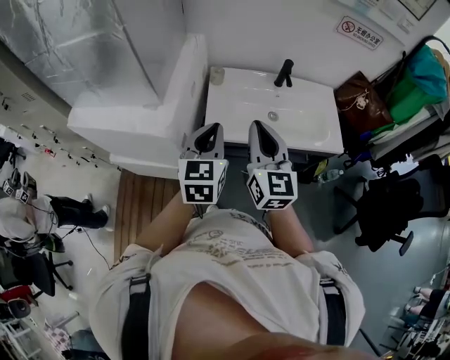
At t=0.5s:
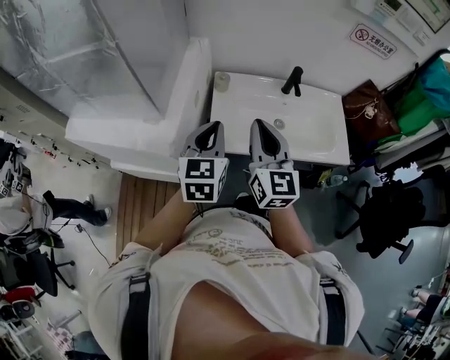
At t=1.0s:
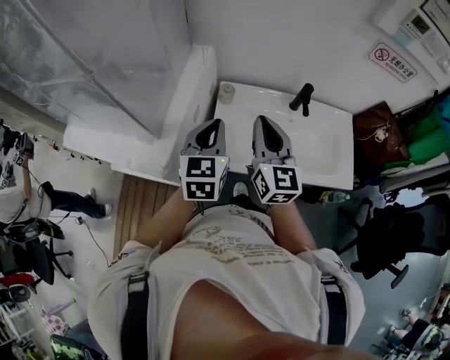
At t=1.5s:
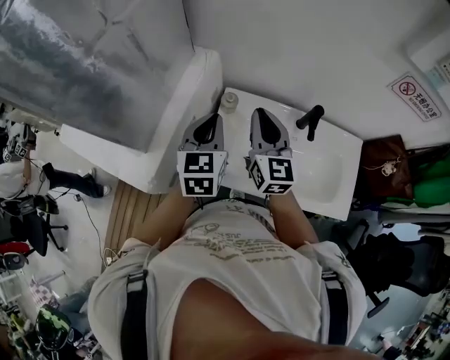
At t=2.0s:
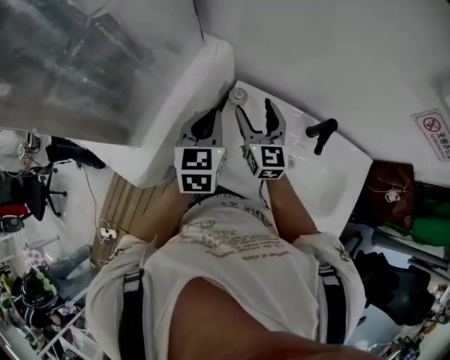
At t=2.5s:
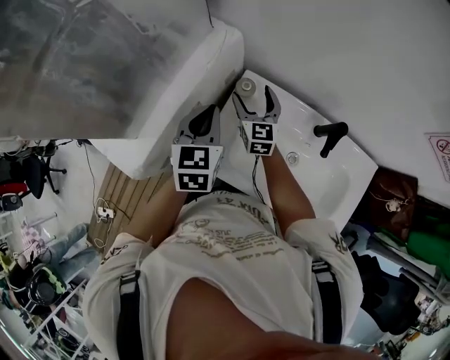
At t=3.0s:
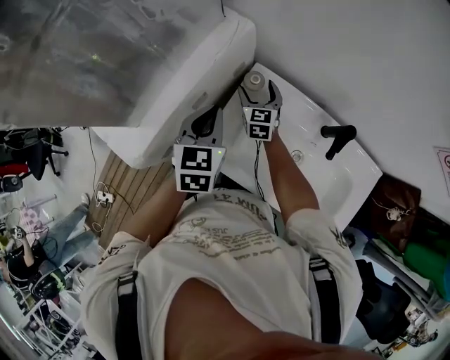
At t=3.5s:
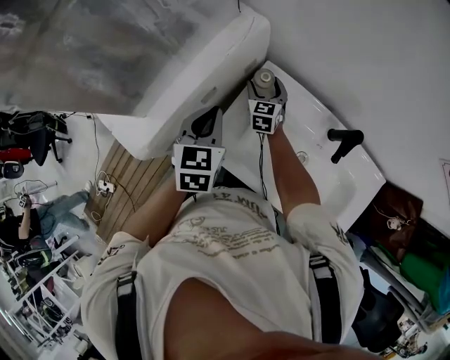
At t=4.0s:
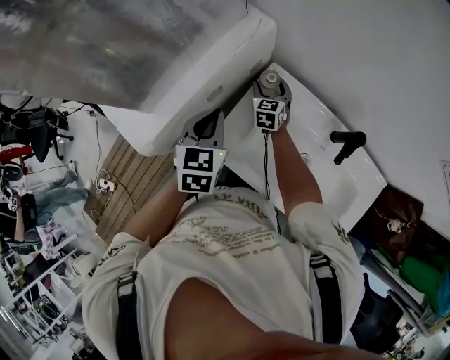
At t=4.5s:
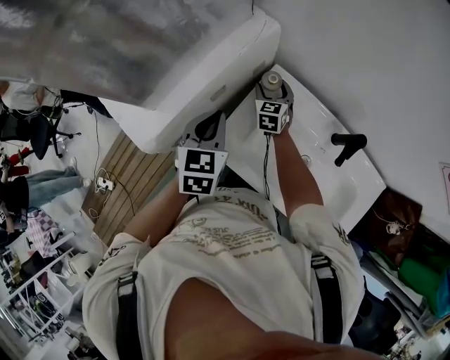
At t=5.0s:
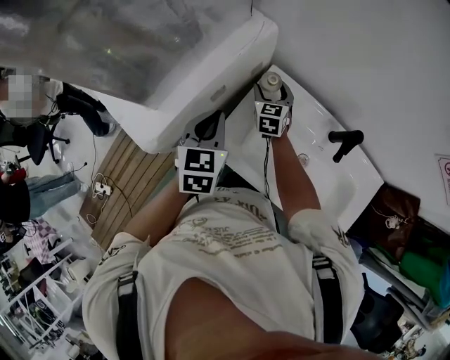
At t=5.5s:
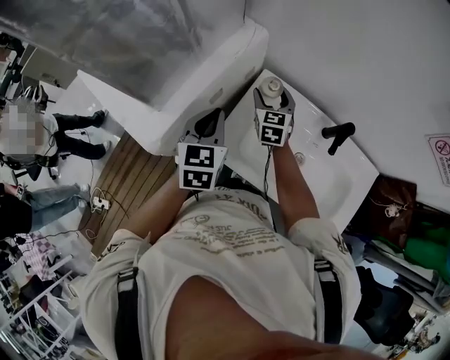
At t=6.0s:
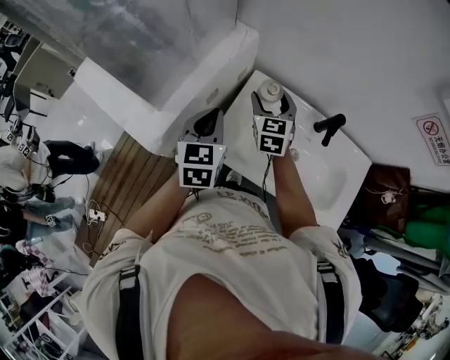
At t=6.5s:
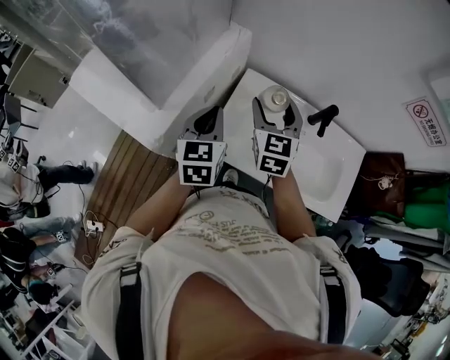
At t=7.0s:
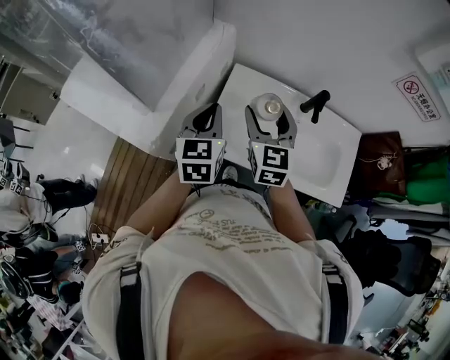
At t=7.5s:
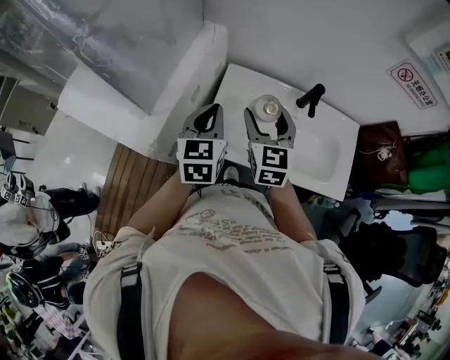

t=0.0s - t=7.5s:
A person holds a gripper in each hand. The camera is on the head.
t=0.0s - t=2.0s: The grippers both shift forward by some 30 cm. The right gripper rotates some 30 degrees, and opens its fingers; the left gripper changes its angle by some 20 degrees.
t=2.0s - t=4.0s: The right gripper heads downward and forward, covering roughly 20 cm, and changes its angle by approximately 30 degrees. The left gripper is displaced downward by about 5 cm.
t=4.0s - t=5.5s: The right gripper shifts roughly 10 cm upward and backward.
t=5.5s - t=7.5s: The left gripper shifts approximately 5 cm to the right. The right gripper heads backward and upward, covering some 20 cm.

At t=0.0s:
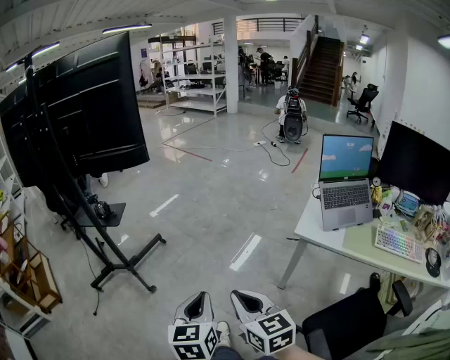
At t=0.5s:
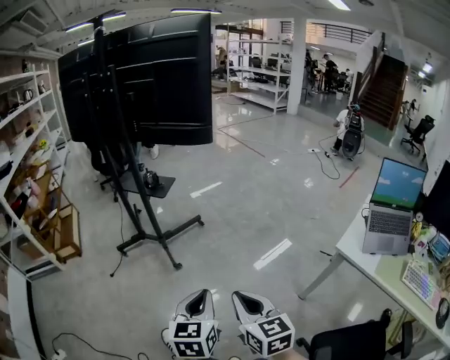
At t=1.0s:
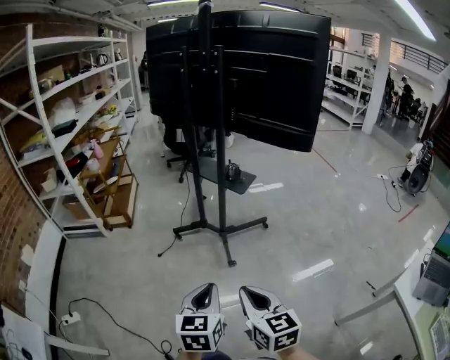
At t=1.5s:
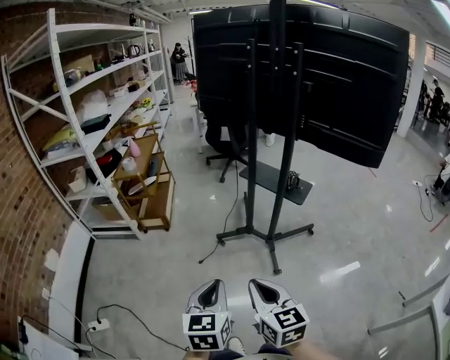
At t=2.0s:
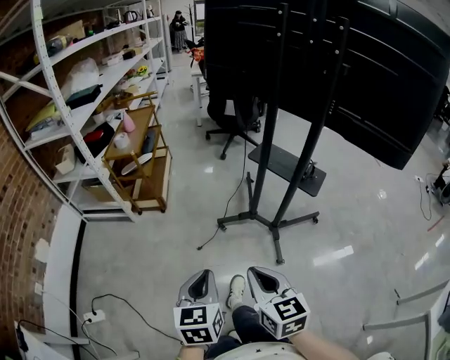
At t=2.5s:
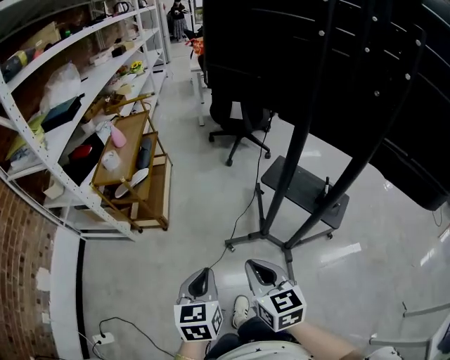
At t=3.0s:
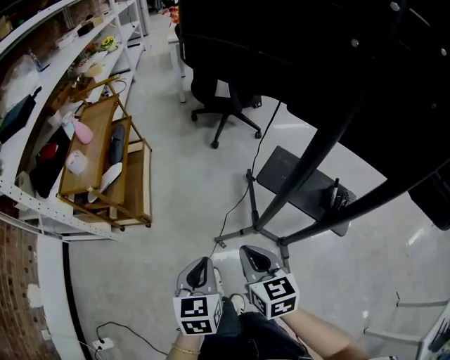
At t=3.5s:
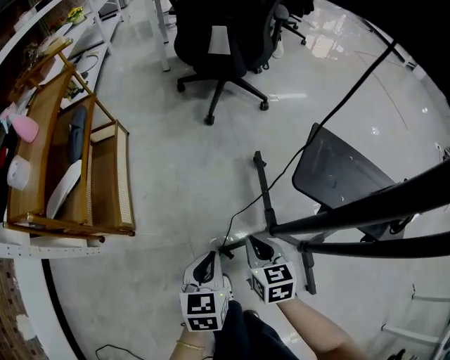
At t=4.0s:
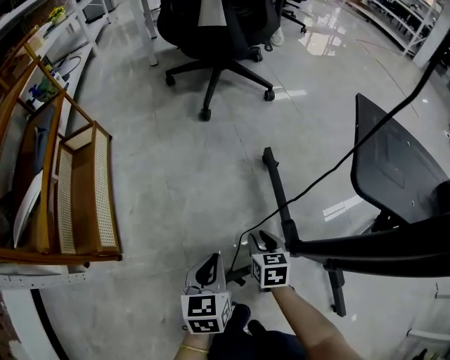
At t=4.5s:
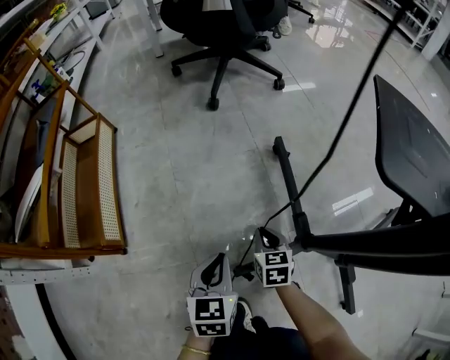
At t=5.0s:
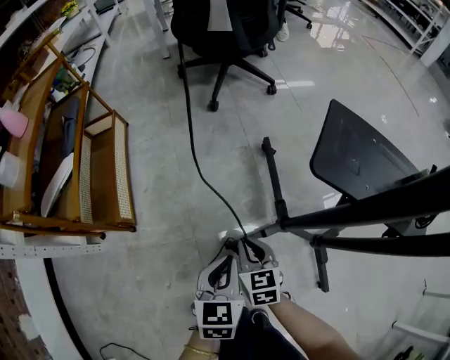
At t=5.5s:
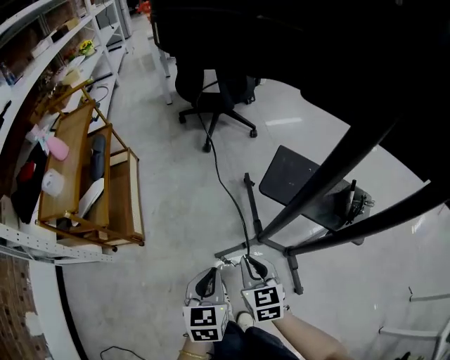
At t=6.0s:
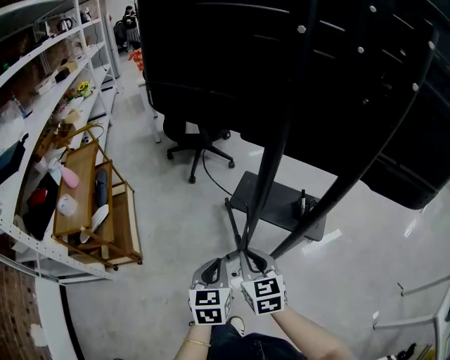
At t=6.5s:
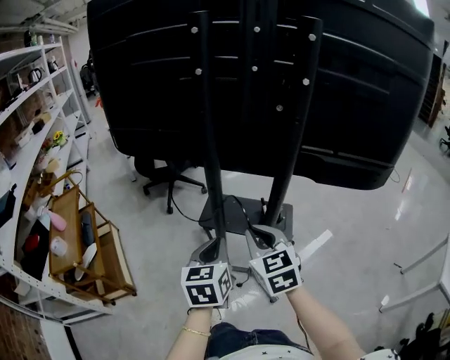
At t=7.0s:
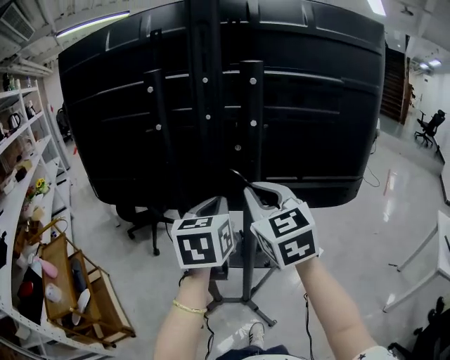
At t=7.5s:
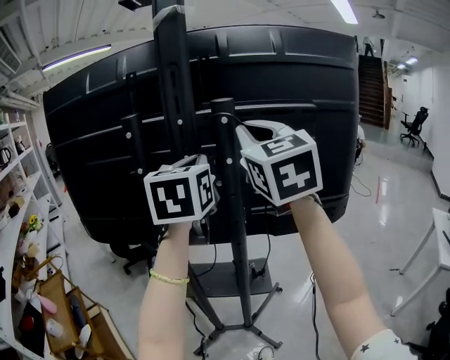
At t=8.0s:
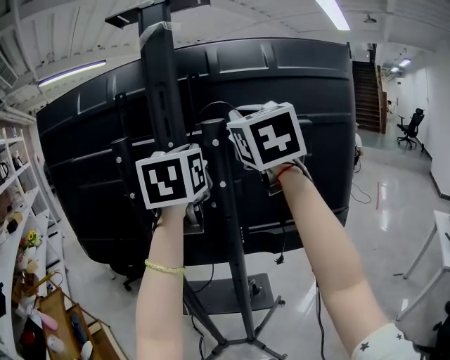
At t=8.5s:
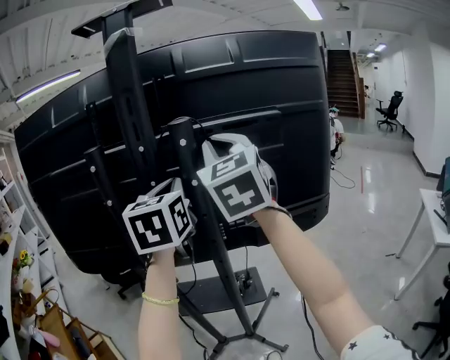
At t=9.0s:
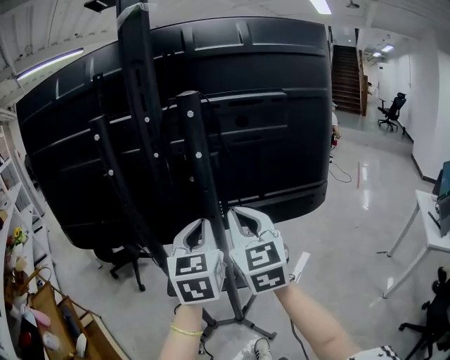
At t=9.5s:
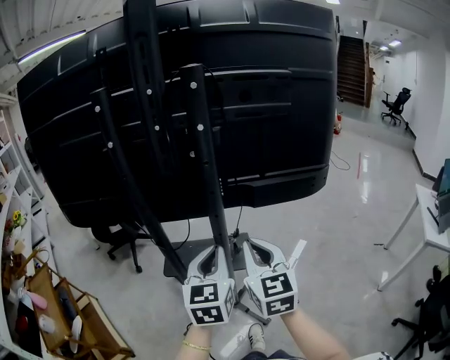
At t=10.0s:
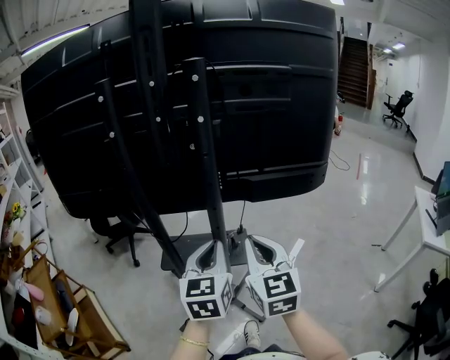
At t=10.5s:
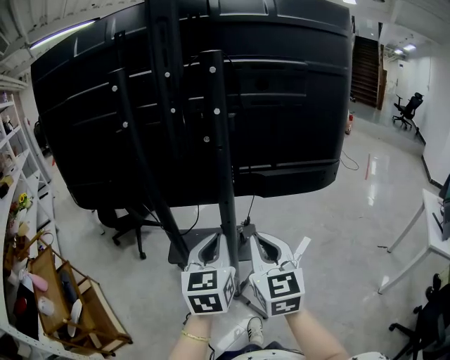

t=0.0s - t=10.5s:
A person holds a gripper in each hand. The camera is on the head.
t=0.0s - t=2.0s: The two grippers travel together, approximately 70 cm. The left gripper rotates approximately 50 degrees, while the right gripper changes its angle by approximately 40 degrees.
t=2.0s - t=4.0s: The two grippers travel together, forward, roughly 70 cm. The two grippers go about 60 cm downward. The right gripper changes its angle by approximately 30 degrees, and opens its fingers.
t=4.0s - t=6.5s: The left gripper is displaced upward and to the right by approximately 70 cm, and swivels approximately 20 degrees; the right gripper moves upward, roughly 70 cm, rotates roughly 30 degrees, and closes up.
t=6.5s - t=8.5s: The right gripper goes approximately 40 cm upward, and angles its fingers upward, by some 30 degrees, while the left gripper moves upward and forward, about 40 cm, and changes its angle by about 30 degrees.
t=8.5s - t=10.5s: Both grippers move downward and backward, about 35 cm.

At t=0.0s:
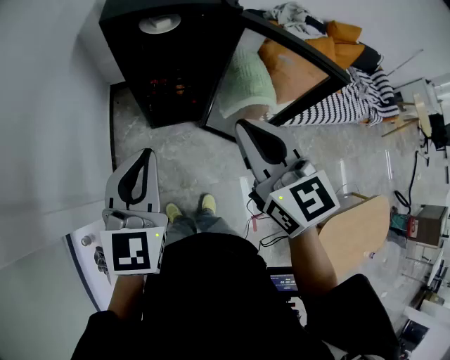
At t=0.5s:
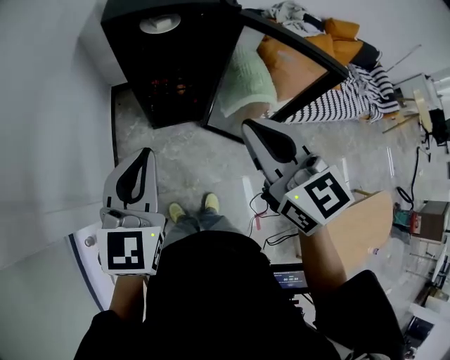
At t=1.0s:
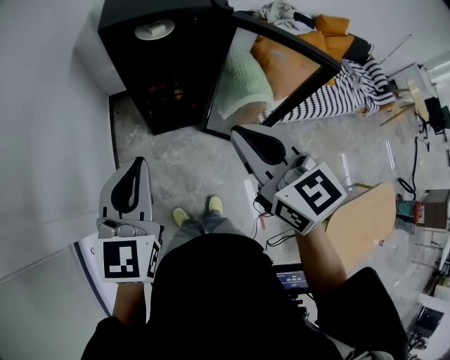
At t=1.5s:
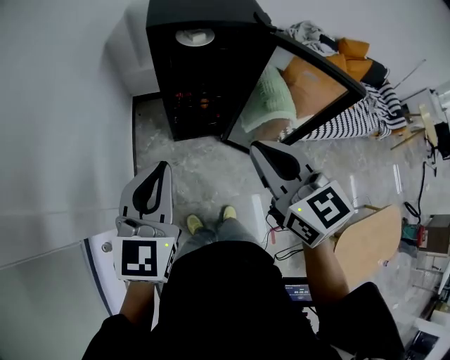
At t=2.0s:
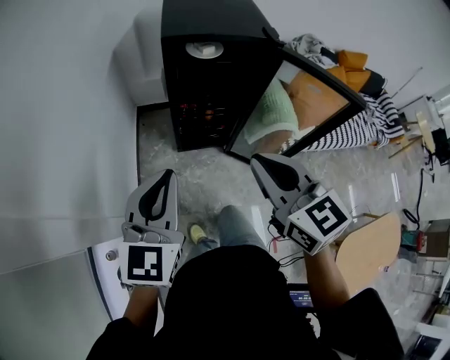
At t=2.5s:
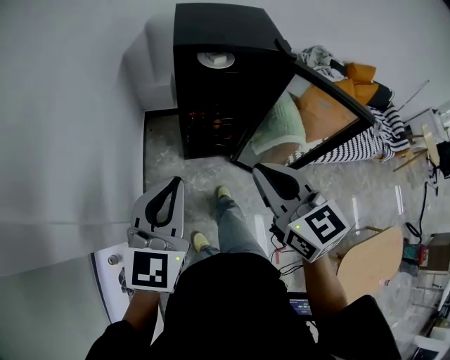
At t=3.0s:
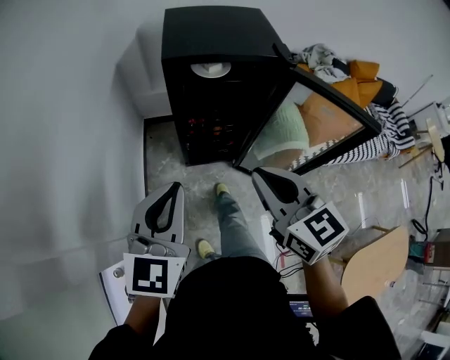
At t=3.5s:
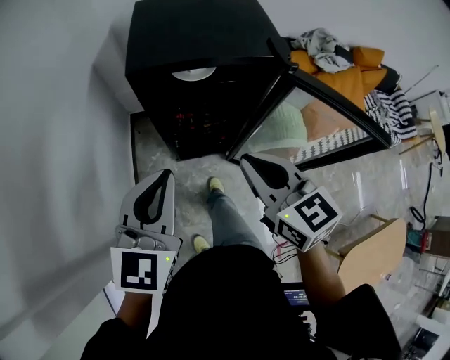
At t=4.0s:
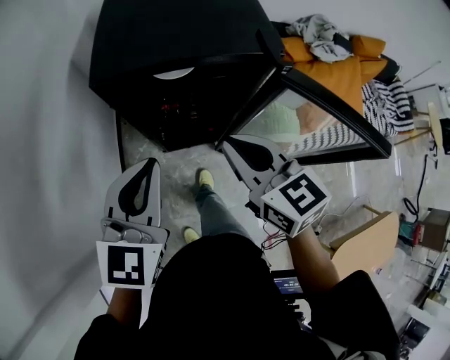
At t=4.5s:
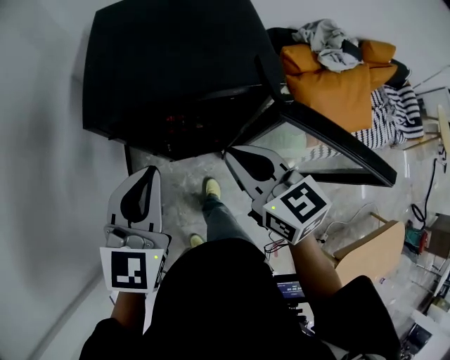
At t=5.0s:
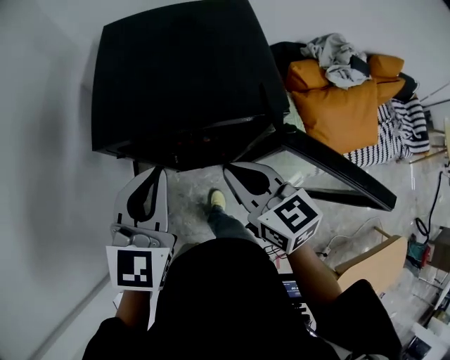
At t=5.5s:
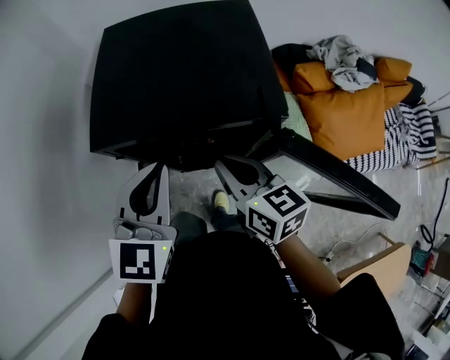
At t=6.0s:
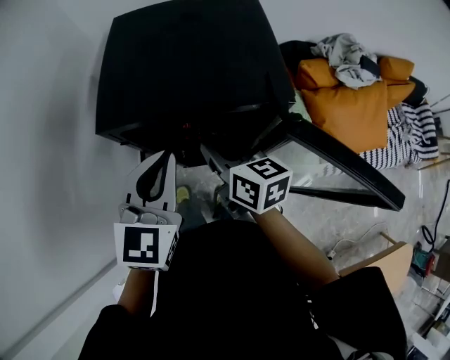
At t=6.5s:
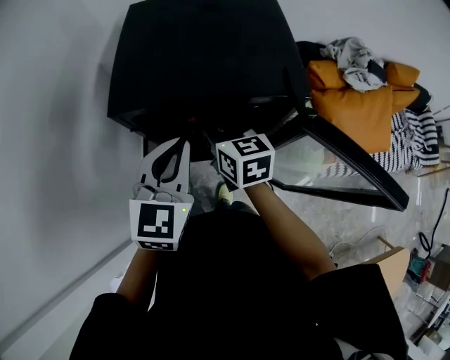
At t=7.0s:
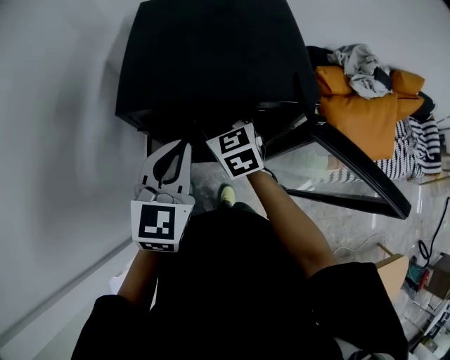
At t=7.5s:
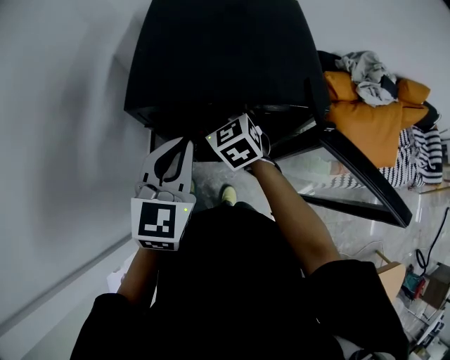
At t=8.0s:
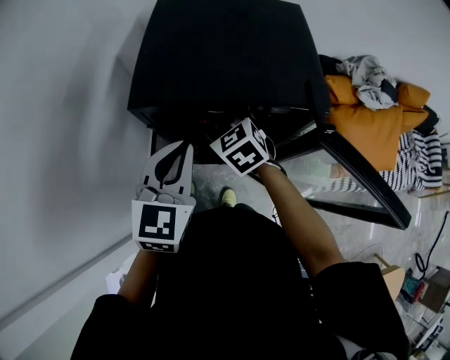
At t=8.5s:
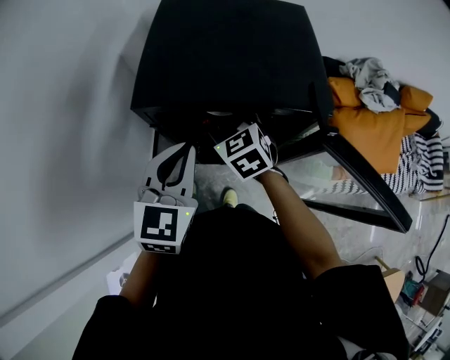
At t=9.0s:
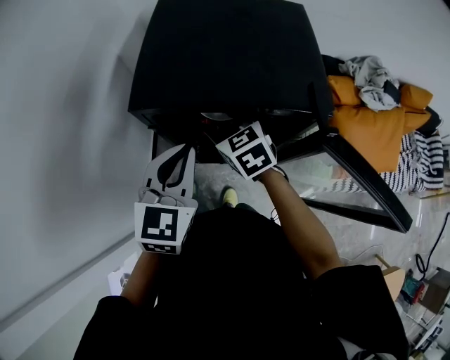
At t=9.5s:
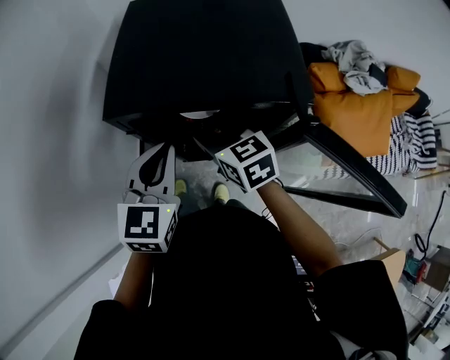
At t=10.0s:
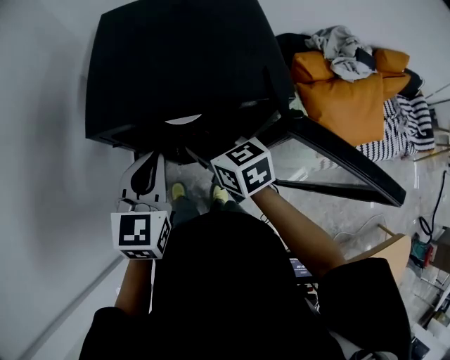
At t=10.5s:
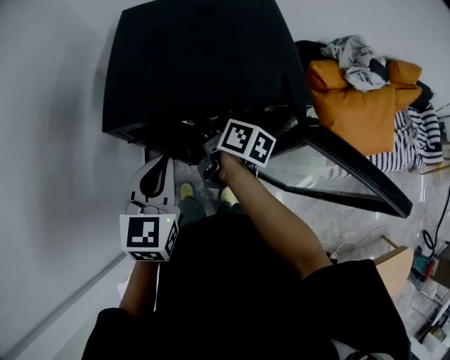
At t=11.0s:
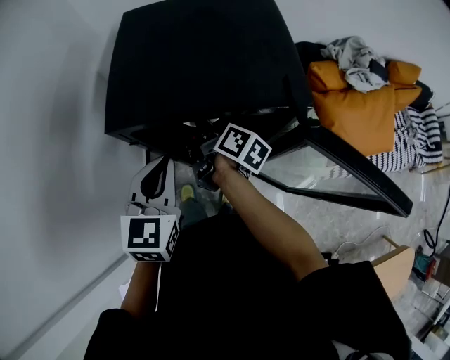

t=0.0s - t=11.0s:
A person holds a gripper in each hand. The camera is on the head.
t=0.0s - t=2.0s: Both grippers travel together to the left, roughly 10 cm.
t=2.0s - t=3.5s: Both grippers travel together forward, about 20 cm.
t=3.5s - t=5.5s: The left gripper heads forward and to the right, covering about 20 cm. The right gripper is displaced forward by roughly 15 cm.
t=5.5s - t=7.5s: The right gripper is displaced forward, to the left and downward by approximately 15 cm, rotates some 40 degrees, and opens; the left gripper changes place by some 5 cm.
t=7.5s - t=9.0s: The grippers stay close to where they were, moving slightly.
t=9.0s - t=11.0s: The right gripper ends up some 5 cm from where it was, and rotates around the line of its fingers by some 80 degrees, clockwise from behind.
